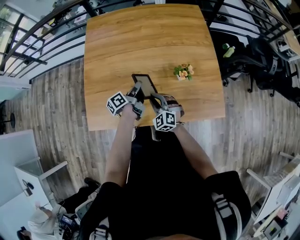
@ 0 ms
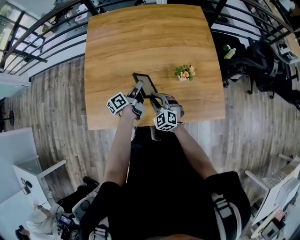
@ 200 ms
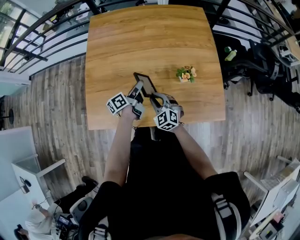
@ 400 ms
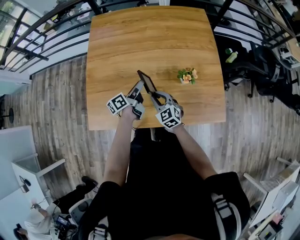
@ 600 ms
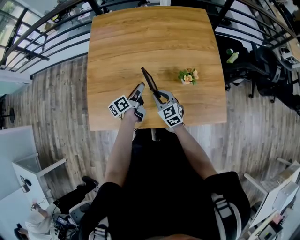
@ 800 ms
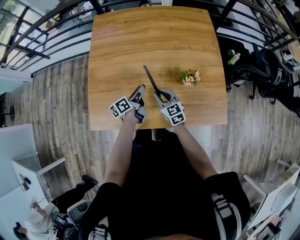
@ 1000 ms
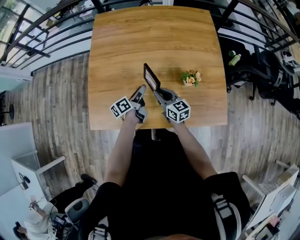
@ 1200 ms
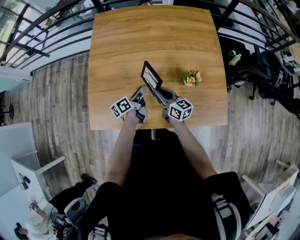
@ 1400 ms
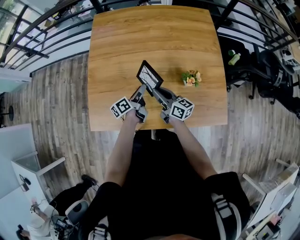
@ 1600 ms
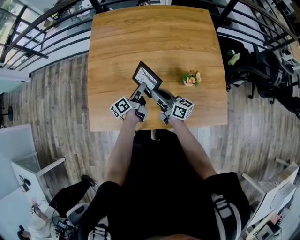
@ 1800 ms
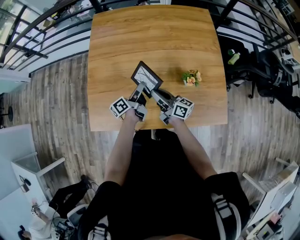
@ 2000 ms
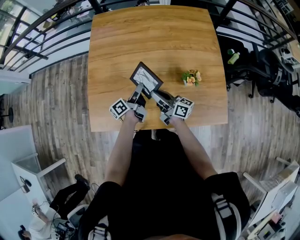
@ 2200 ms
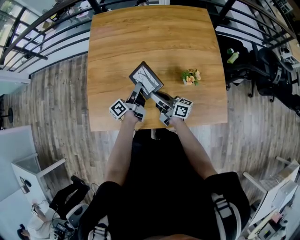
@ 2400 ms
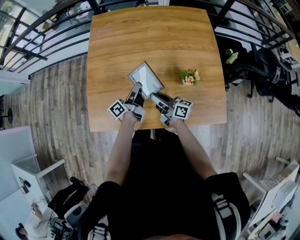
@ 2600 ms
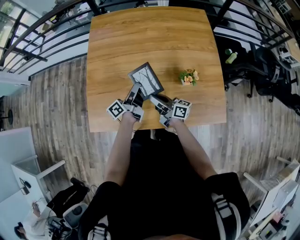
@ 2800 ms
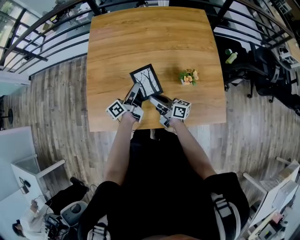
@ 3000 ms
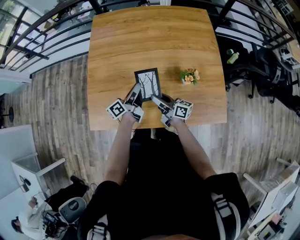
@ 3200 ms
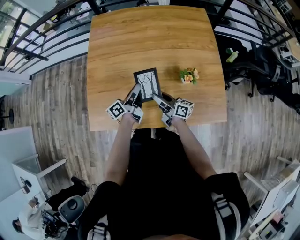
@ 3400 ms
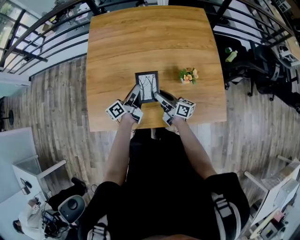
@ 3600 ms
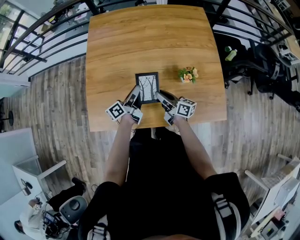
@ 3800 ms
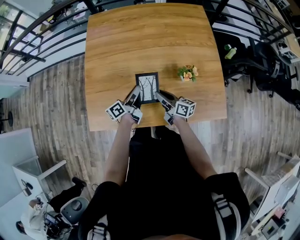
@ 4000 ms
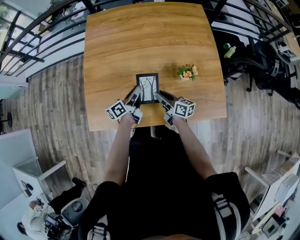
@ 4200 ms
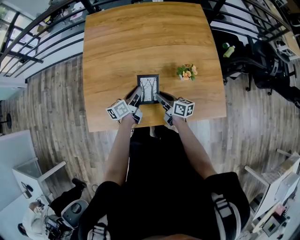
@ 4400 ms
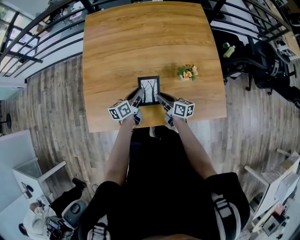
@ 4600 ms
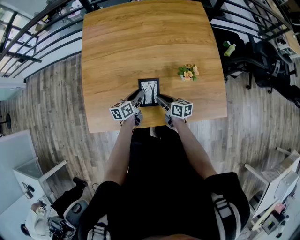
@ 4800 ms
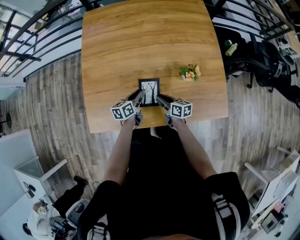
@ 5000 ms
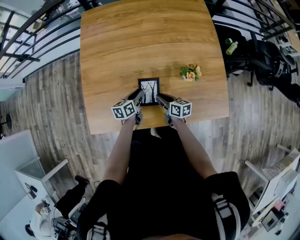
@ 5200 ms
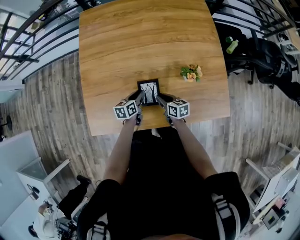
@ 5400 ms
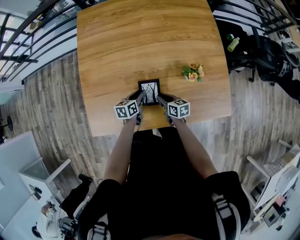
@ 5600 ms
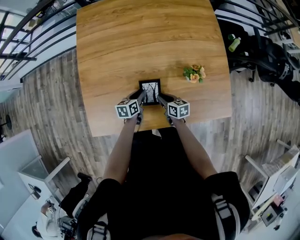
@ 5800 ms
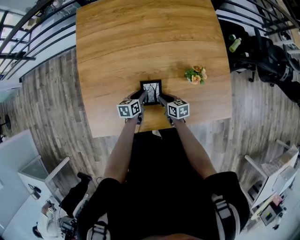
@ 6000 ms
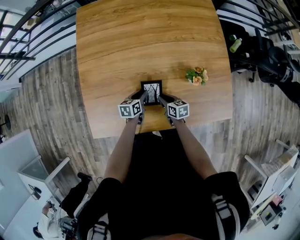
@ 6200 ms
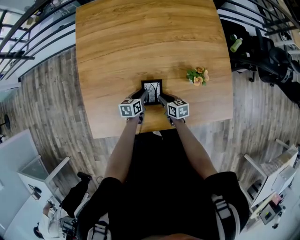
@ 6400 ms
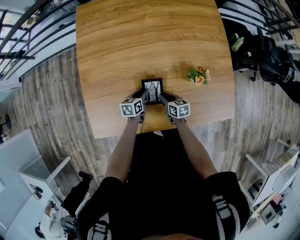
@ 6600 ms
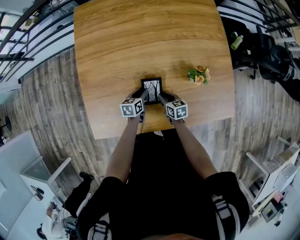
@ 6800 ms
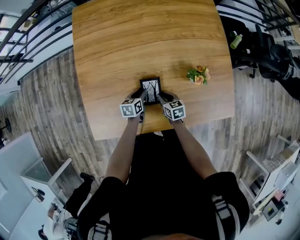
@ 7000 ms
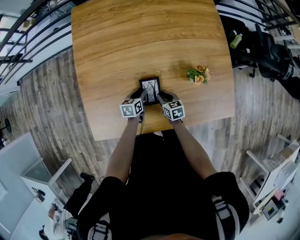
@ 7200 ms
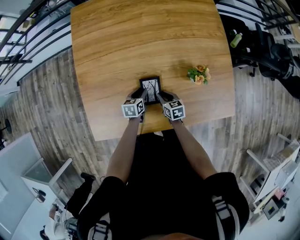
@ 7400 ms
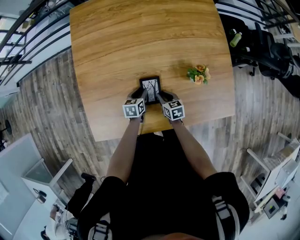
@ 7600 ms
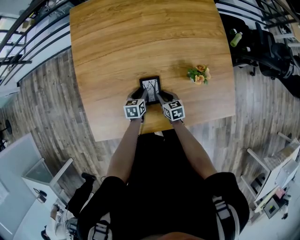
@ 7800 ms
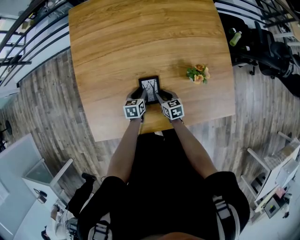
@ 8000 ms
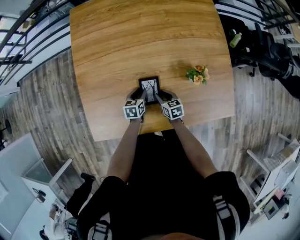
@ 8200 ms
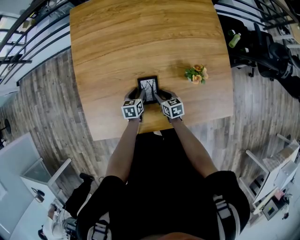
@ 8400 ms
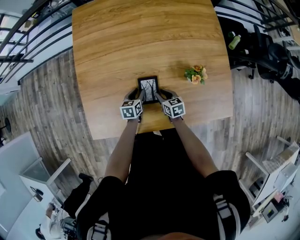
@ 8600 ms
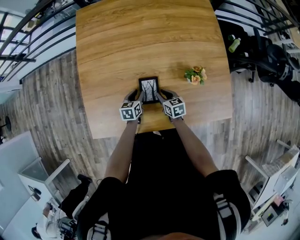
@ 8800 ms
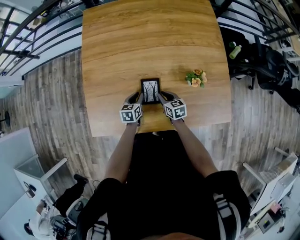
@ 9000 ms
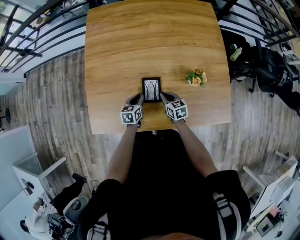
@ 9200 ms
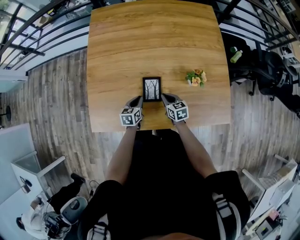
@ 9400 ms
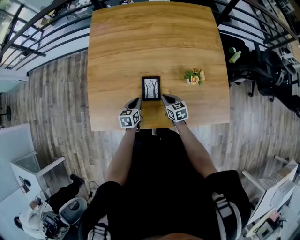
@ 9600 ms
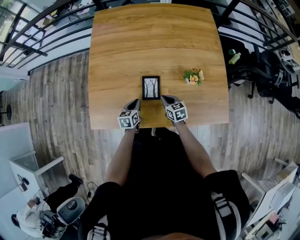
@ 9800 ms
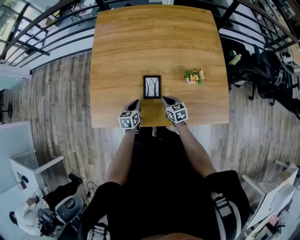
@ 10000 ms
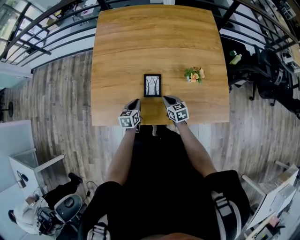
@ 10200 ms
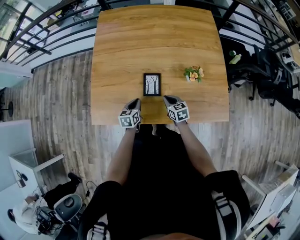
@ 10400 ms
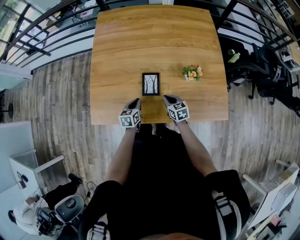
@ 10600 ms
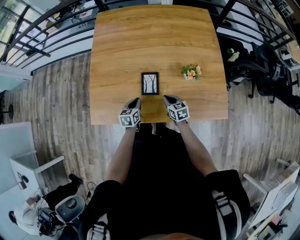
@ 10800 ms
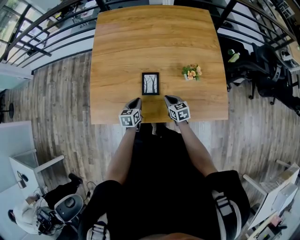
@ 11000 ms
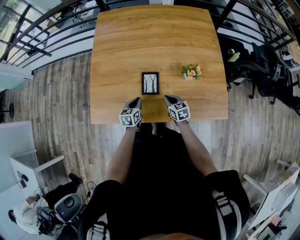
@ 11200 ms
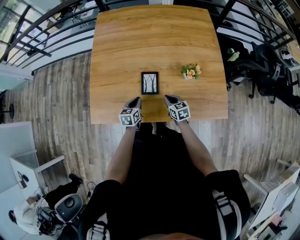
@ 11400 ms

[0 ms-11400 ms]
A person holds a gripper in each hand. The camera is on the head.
0 ms to 1400 ms: The right gripper goes some 5 cm forward, and twists some 70 degrees clockwise, seen from behind.
1400 ms to 2800 ms: The left gripper travels upward by about 5 cm, swivels some 20 degrees, and closes. Meanwhile the right gripper swivels some 30 degrees.
2800 ms to 4200 ms: The right gripper heads downward, covering some 5 cm, while the left gripper changes place by approximately 5 cm, and turns by about 20 degrees.
4200 ms to 5600 ms: The two grippers go approximately 10 cm downward. The left gripper changes its angle by about 40 degrees, while the right gripper turns by some 30 degrees.
5600 ms to 7200 ms: The left gripper is displaced downward by some 5 cm.
7200 ms to 8600 ms: The grippers stay close to where they were, moving slightly.
8600 ms to 10000 ms: The right gripper heads backward, covering approximately 5 cm, and closes, while the left gripper goes approximately 10 cm backward and upward, and closes.
10000 ms to 11400 ms: The grippers stay close to where they were, moving slightly.

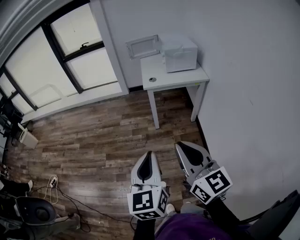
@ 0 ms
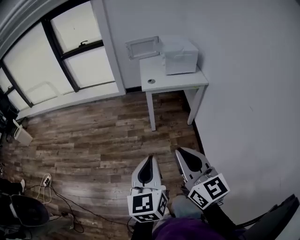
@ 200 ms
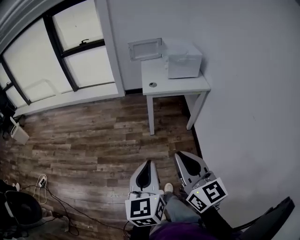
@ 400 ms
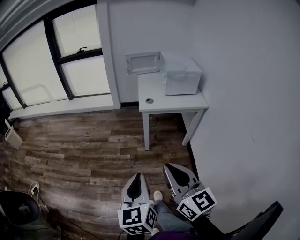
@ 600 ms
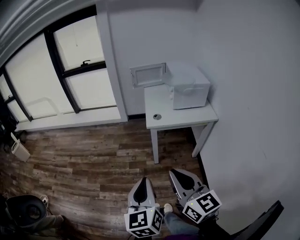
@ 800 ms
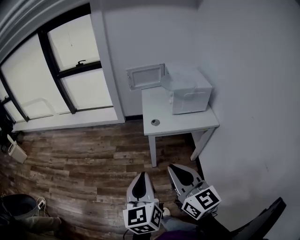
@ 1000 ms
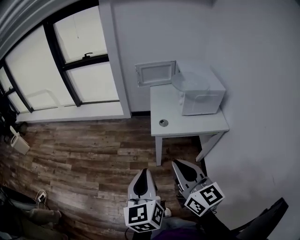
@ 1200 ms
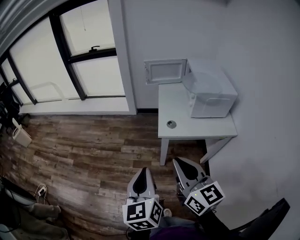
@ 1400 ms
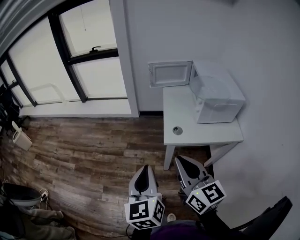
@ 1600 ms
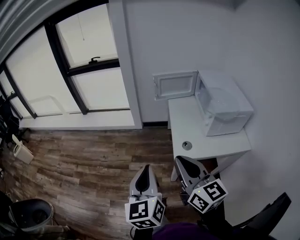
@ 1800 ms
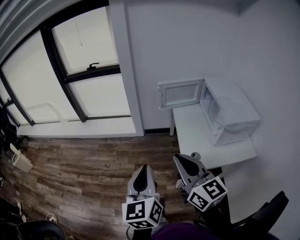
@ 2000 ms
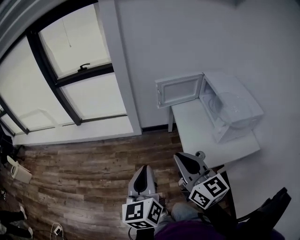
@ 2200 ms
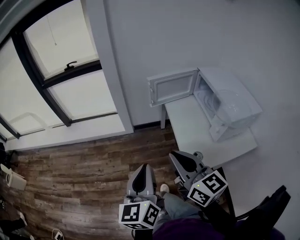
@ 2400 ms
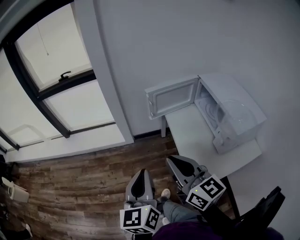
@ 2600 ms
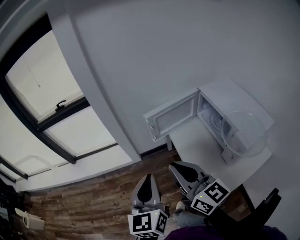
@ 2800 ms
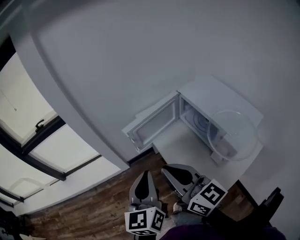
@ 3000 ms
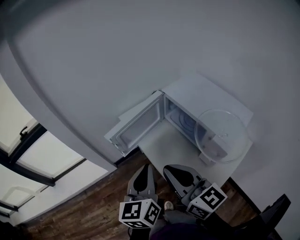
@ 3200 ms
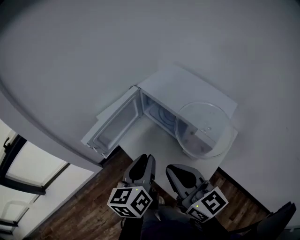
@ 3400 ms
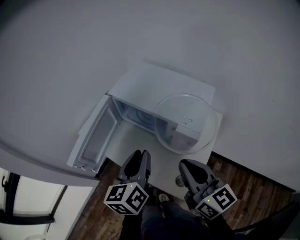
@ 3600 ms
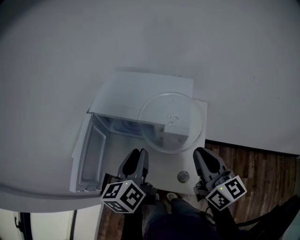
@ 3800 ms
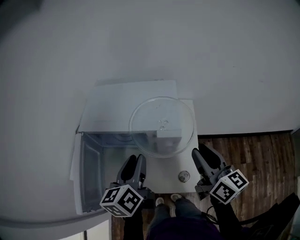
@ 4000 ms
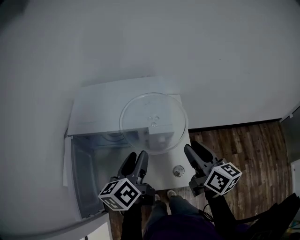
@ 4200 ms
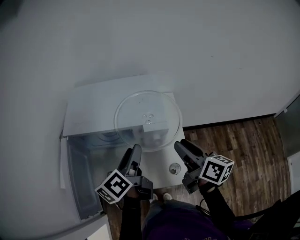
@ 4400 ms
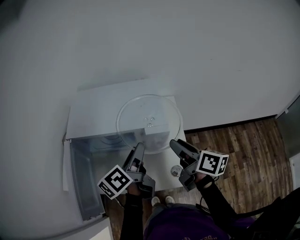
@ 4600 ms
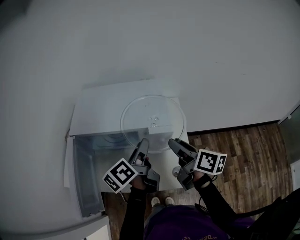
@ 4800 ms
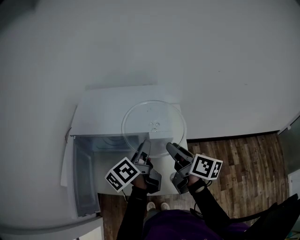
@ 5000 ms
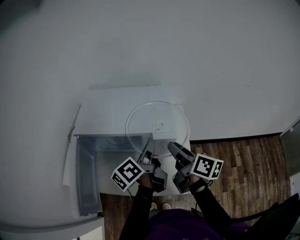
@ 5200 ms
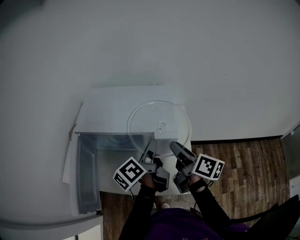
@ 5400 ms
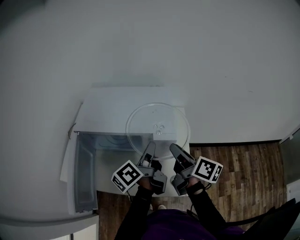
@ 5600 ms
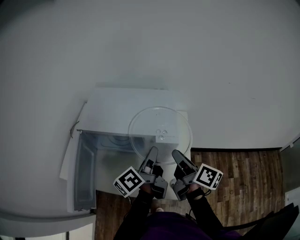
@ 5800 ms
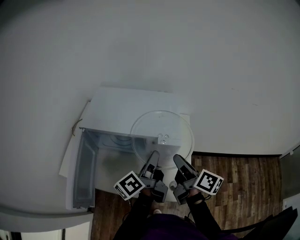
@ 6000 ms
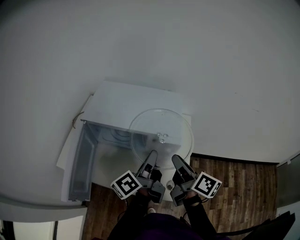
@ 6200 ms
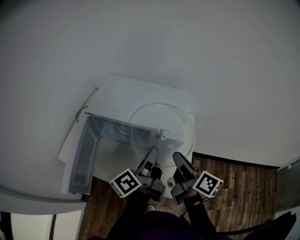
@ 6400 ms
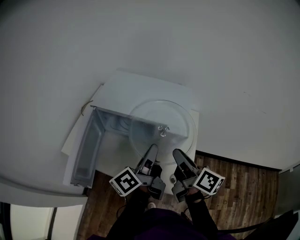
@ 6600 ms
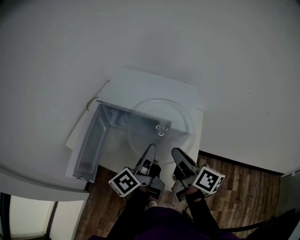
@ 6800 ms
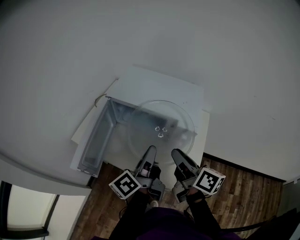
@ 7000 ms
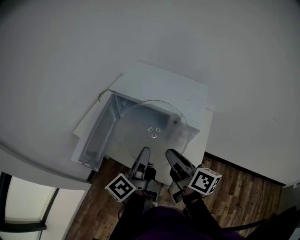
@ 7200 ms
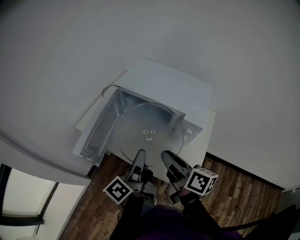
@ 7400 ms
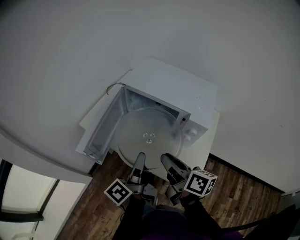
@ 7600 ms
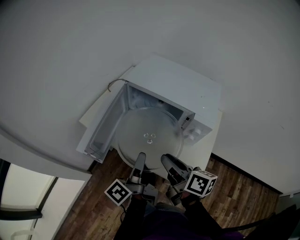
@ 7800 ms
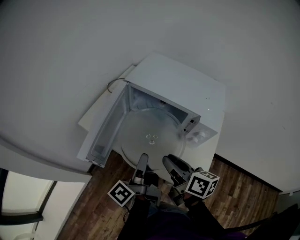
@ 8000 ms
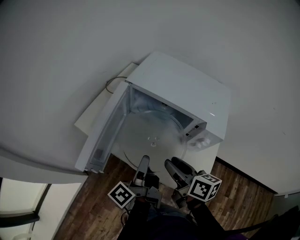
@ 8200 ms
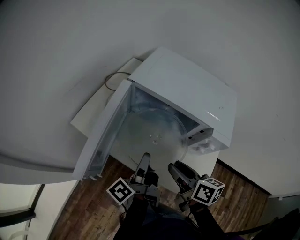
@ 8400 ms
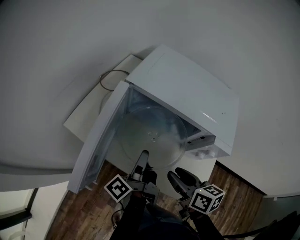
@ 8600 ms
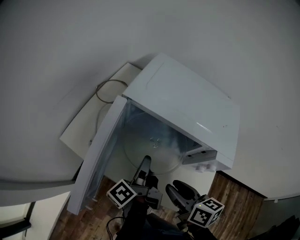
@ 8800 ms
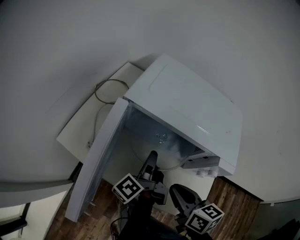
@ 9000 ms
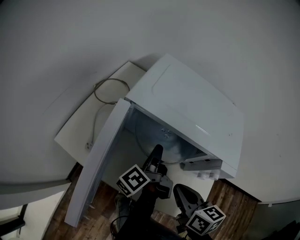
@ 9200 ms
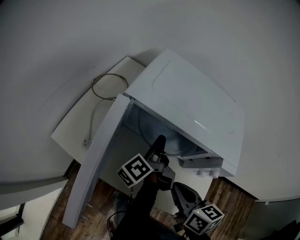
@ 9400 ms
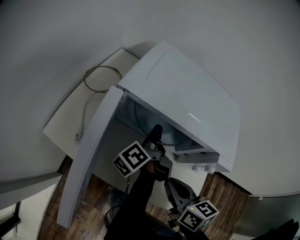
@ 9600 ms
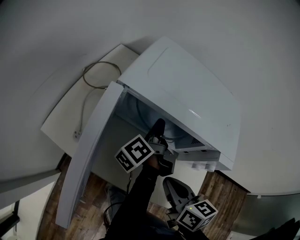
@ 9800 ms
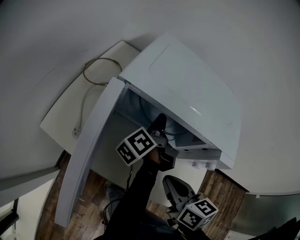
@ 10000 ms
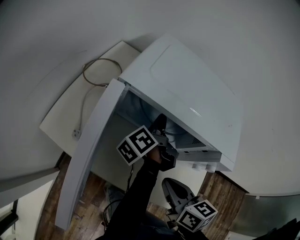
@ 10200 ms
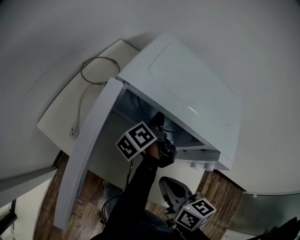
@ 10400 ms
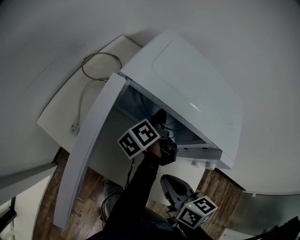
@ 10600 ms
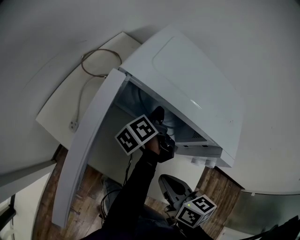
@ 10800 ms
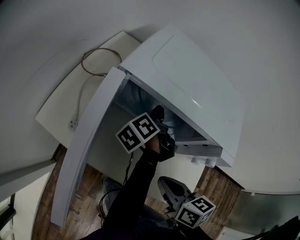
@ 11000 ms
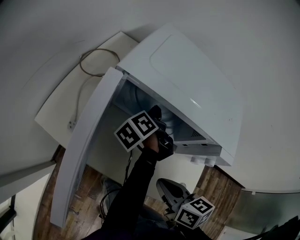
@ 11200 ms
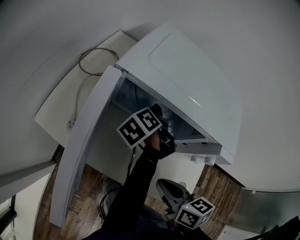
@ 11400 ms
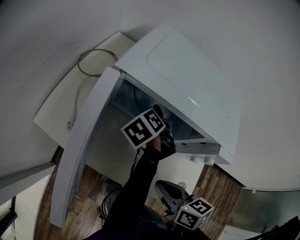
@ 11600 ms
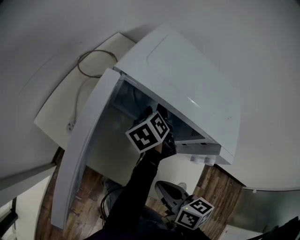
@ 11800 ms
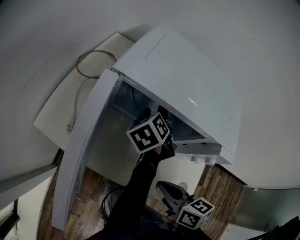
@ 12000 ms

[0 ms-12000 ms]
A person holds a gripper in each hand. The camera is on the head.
0 ms to 1600 ms: The two grippers travel together, forward, some 40 cm.
1600 ms to 3000 ms: Both grippers are carried forward, some 50 cm. The left gripper changes its angle by some 30 degrees.
3000 ms to 4400 ms: The right gripper ends up about 30 cm from where it was, turns by about 80 degrees, and opens. The left gripper ends up roughly 30 cm from where it was, rotates approximately 80 degrees, and opens.
4400 ms to 6000 ms: The left gripper swivels some 20 degrees, and closes up.
6000 ms to 7600 ms: The left gripper ends up some 20 cm from where it was, and changes its angle by roughly 30 degrees, while the right gripper changes place by some 15 cm, and swivels roughly 30 degrees.
7600 ms to 9000 ms: The right gripper moves forward and downward, roughly 10 cm, and changes its angle by roughly 30 degrees. The left gripper travels forward and downward by approximately 20 cm.
9000 ms to 10400 ms: The left gripper heads forward and to the right, covering roughly 10 cm.
10400 ms to 12000 ms: The left gripper swivels approximately 30 degrees, and opens its fingers.
